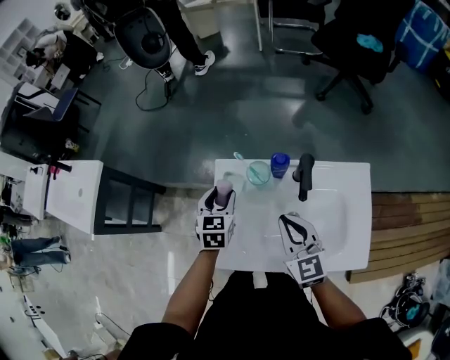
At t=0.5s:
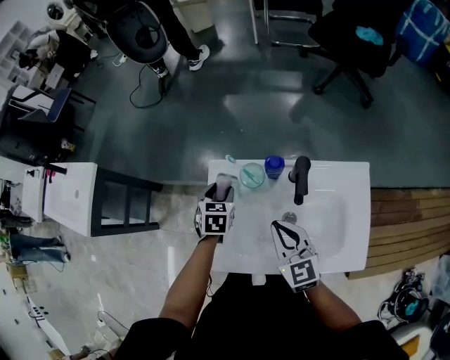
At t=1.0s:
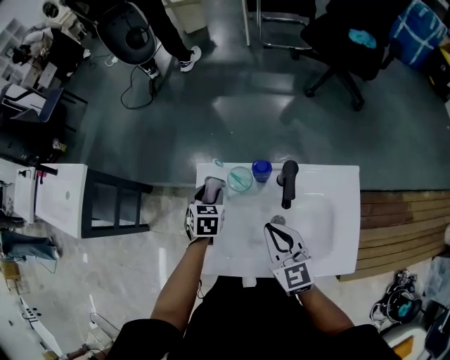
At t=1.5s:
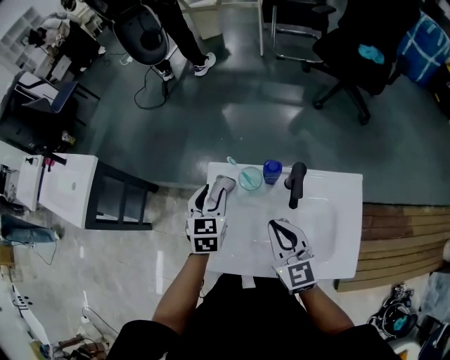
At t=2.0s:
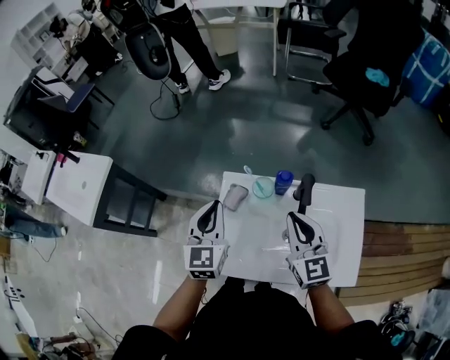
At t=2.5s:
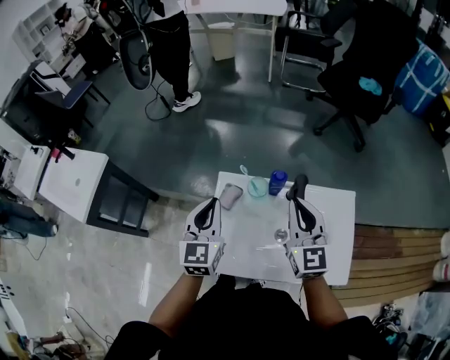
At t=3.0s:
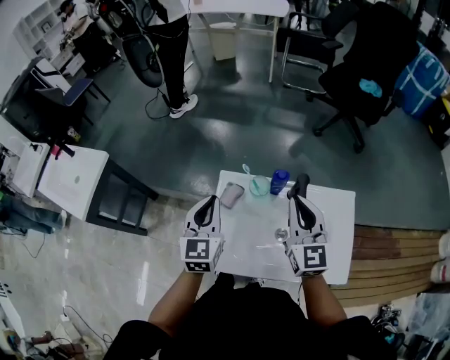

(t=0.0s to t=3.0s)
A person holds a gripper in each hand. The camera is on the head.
t=1.5s - t=3.0s: The right gripper moves upward, about 10 cm, while the left gripper heads upward and backward, covering some 15 cm, and closes its fingers.

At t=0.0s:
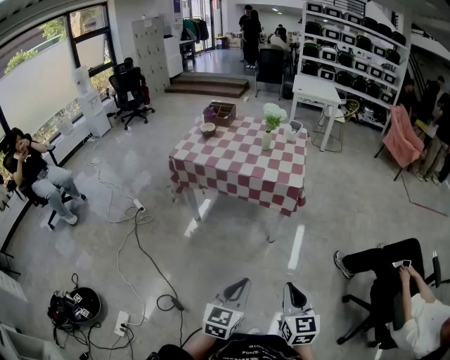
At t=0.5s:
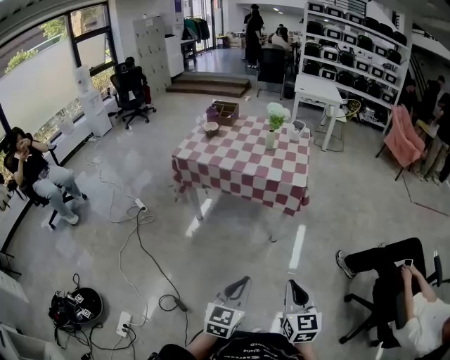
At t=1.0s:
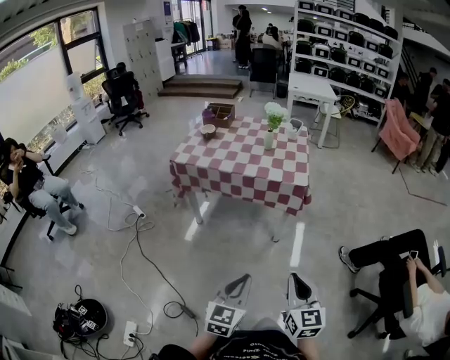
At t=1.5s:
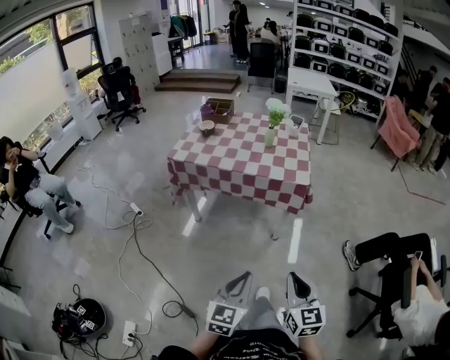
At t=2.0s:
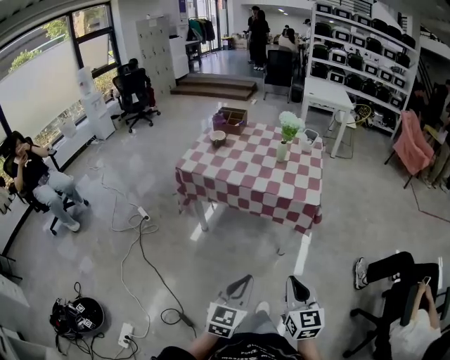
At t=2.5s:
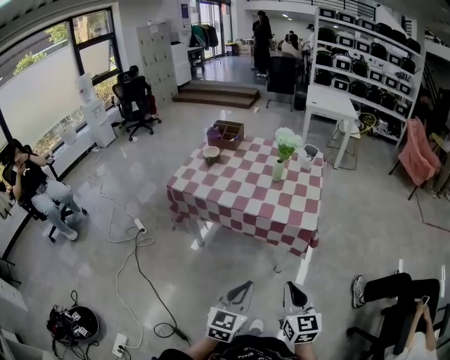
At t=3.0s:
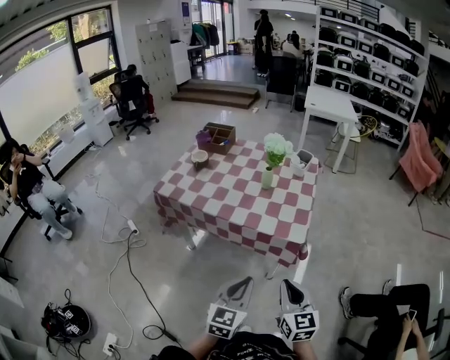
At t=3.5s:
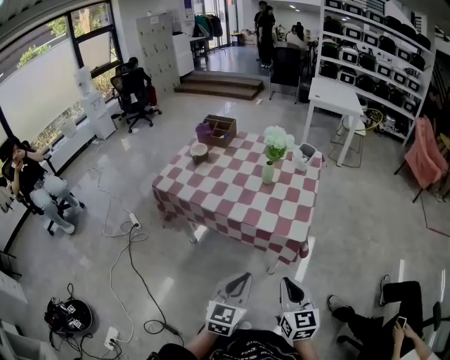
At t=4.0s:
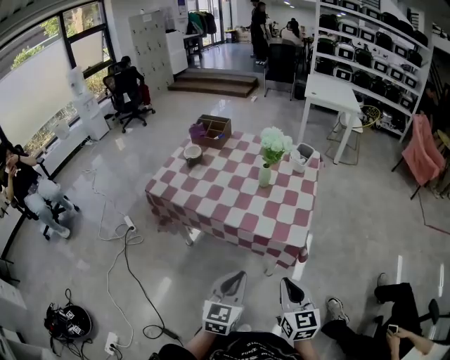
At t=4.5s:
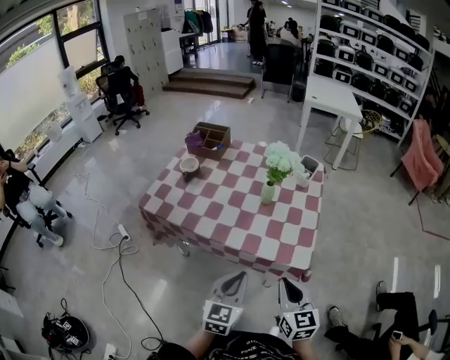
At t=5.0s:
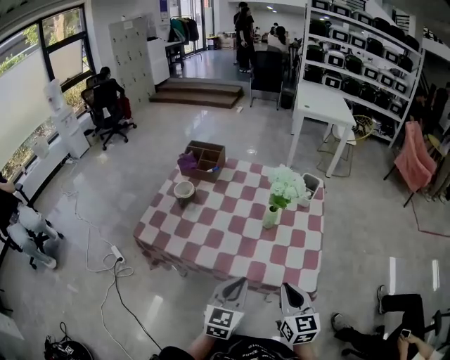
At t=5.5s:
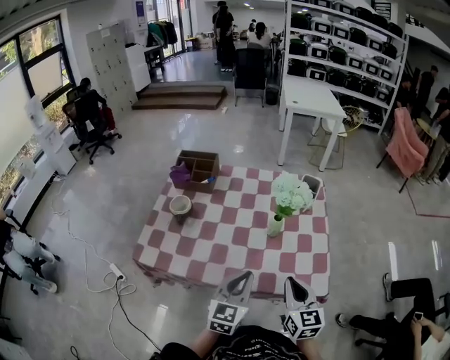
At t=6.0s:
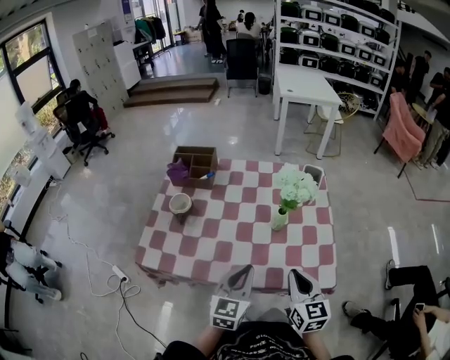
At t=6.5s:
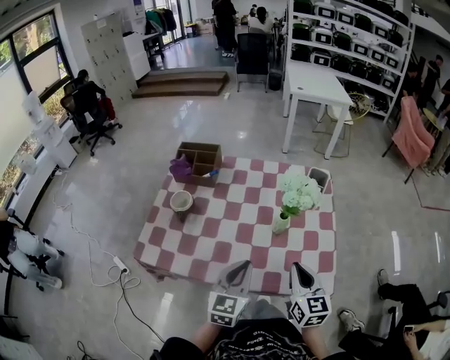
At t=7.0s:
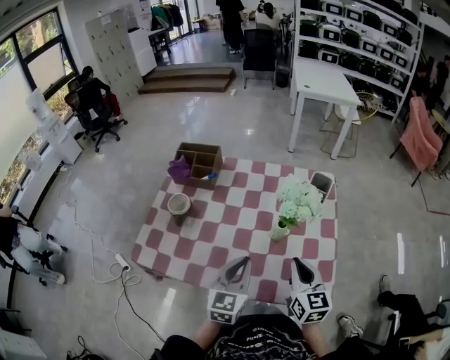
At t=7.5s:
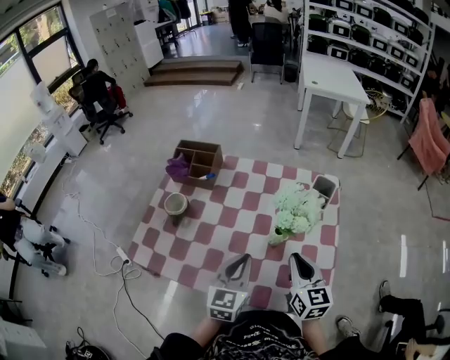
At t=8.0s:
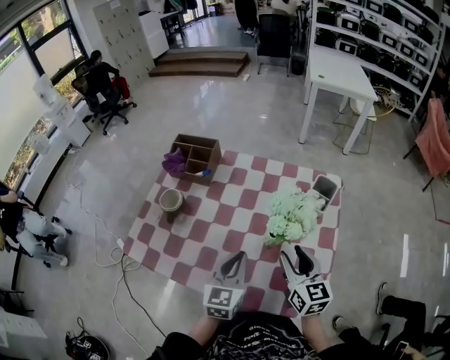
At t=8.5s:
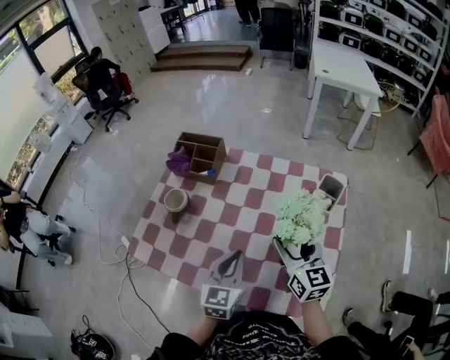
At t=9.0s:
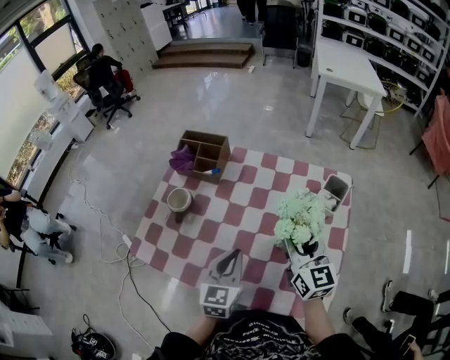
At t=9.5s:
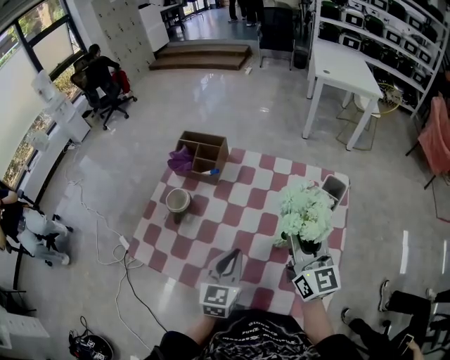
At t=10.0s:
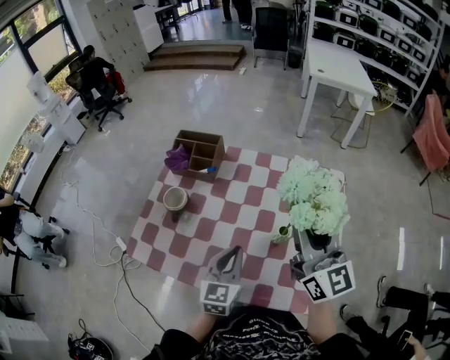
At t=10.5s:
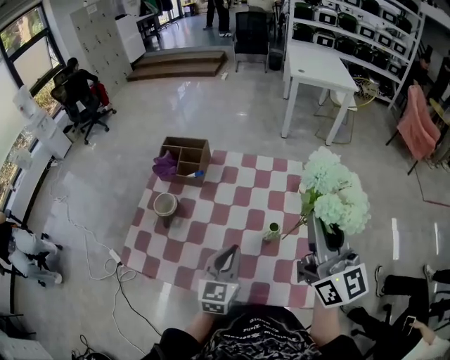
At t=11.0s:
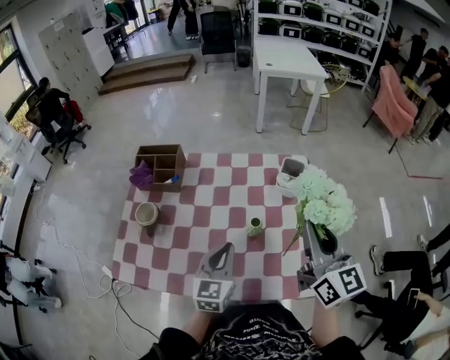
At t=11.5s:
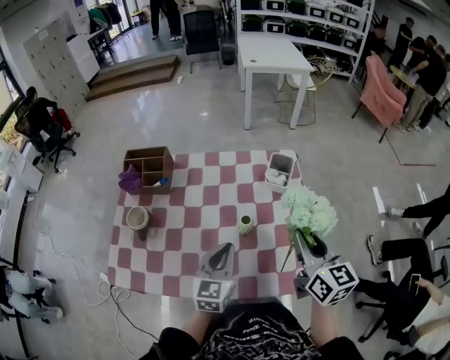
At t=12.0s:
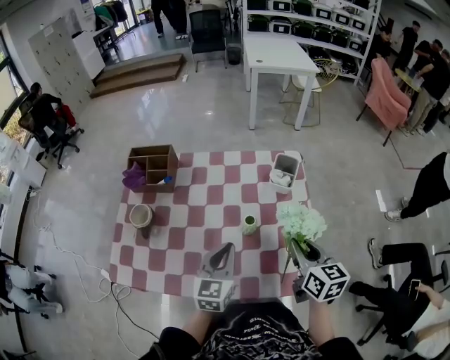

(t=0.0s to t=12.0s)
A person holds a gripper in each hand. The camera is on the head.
t=0.0s - t=2.0s: The grippers both shift forward and to the left by roughly 15 cm.
t=2.0s - t=4.0s: The left gripper travels forward by some 25 cm, while the right gripper travels forward and to the right by approximately 25 cm.
t=4.0s - t=6.0s: The grippers both shift forward and to the left by approximately 25 cm.
t=6.0s - t=8.0s: Both grippers travel together forward, approximately 15 cm. The right gripper opens its fingers.
t=8.0s - t=10.0s: The right gripper goes some 20 cm upward, changes its angle by about 30 degrees, and opens, then closes again.
t=10.0s - t=12.0s: The right gripper heads downward, to the right and backward, covering approximately 20 cm, and tilts its fingers about 30 degrees downward. The left gripper moves to the right, approximately 5 cm.

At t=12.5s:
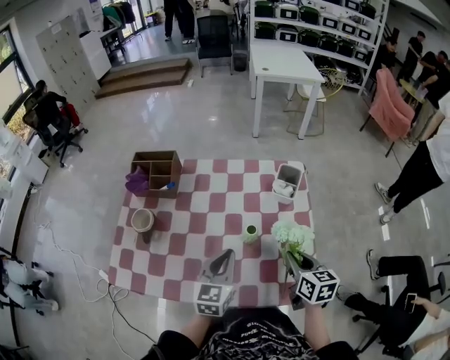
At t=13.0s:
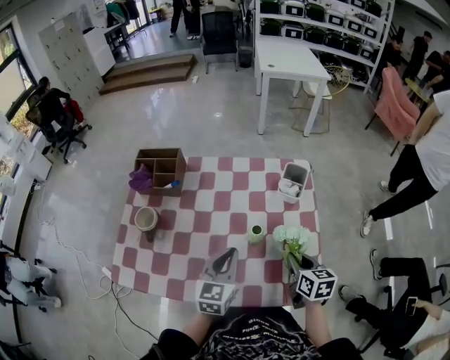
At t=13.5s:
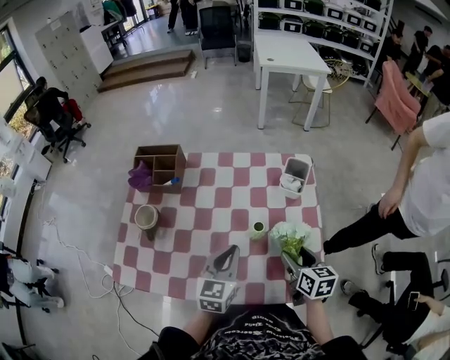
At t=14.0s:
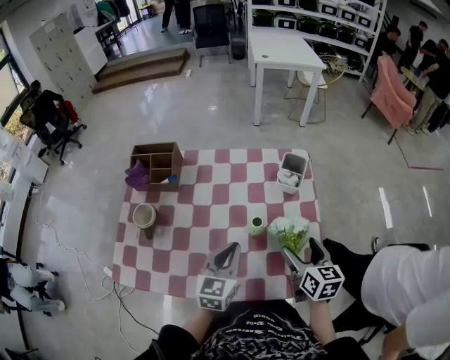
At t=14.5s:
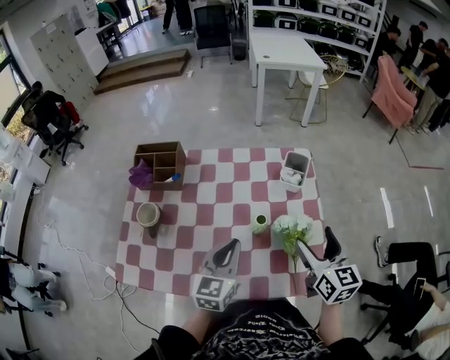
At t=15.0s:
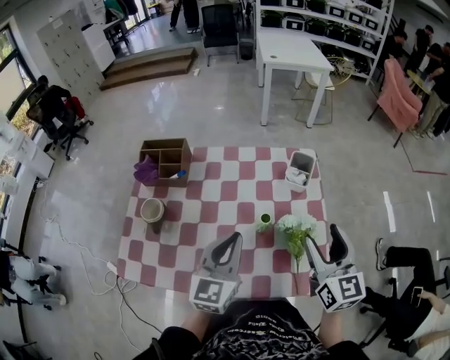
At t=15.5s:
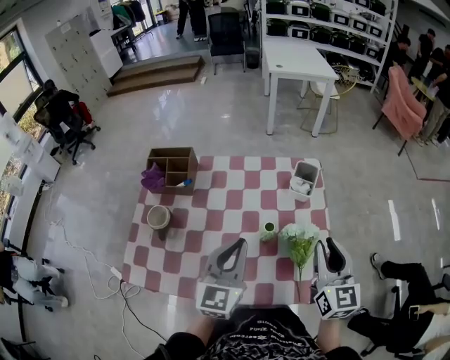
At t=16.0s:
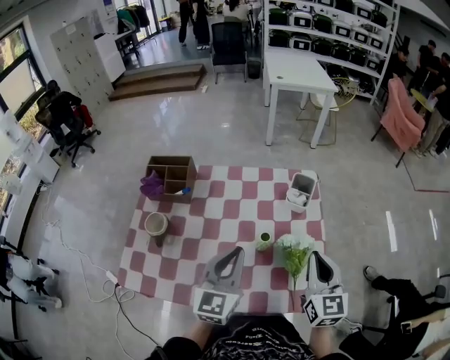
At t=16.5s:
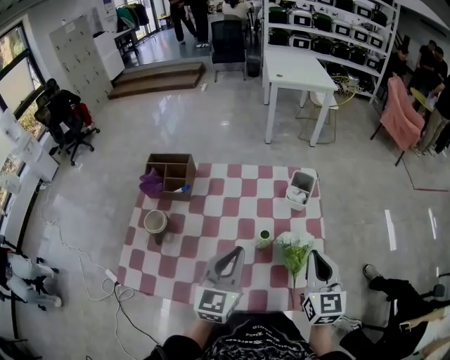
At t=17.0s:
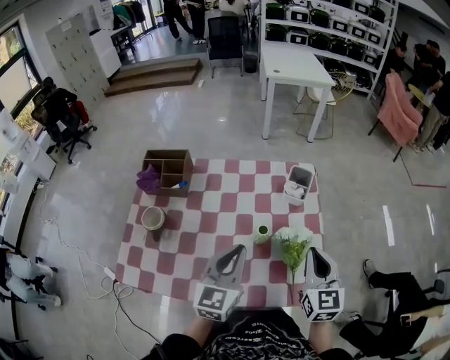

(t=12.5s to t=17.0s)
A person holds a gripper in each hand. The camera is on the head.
t=12.5s - t=14.5s: The right gripper moves upward, about 10 cm, and opens its fingers.
t=14.5s - t=17.0s: The right gripper closes its fingers. The left gripper heads upward, covering about 5 cm.

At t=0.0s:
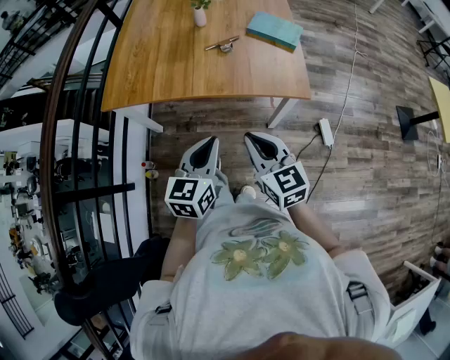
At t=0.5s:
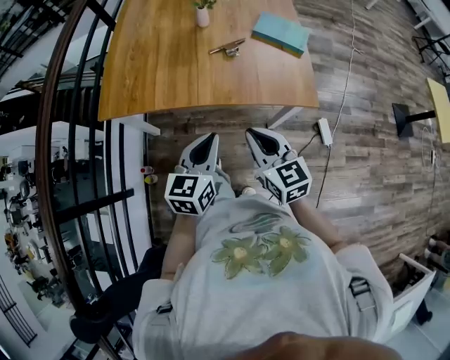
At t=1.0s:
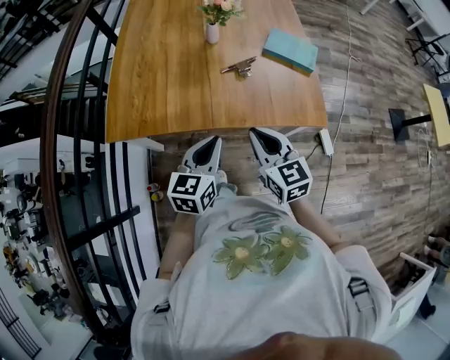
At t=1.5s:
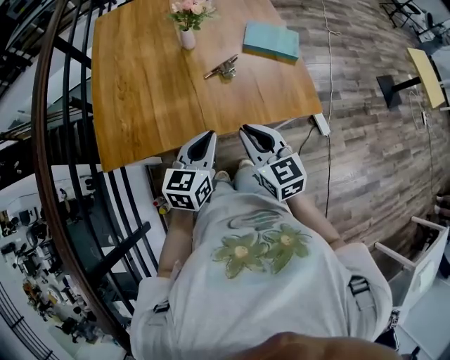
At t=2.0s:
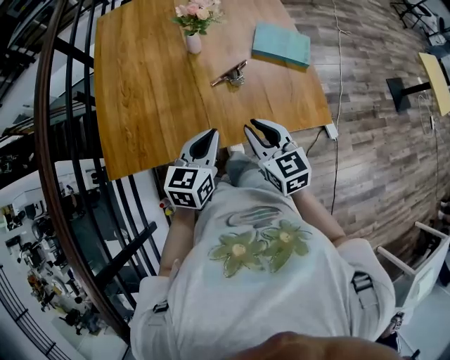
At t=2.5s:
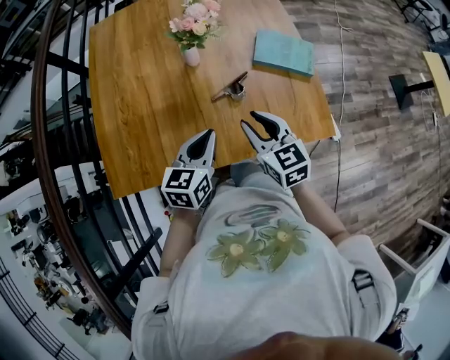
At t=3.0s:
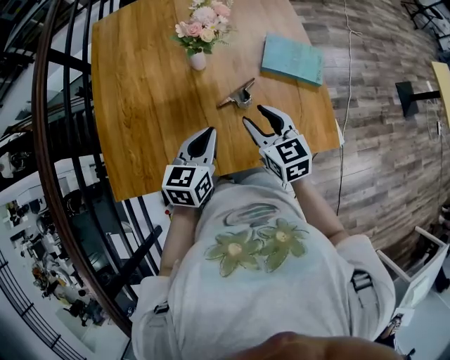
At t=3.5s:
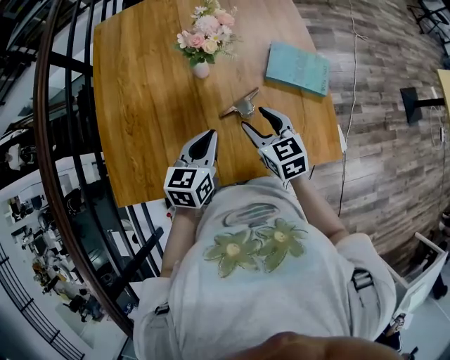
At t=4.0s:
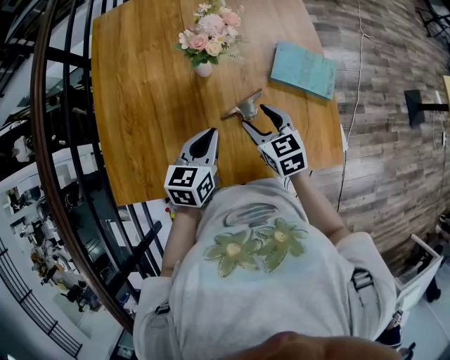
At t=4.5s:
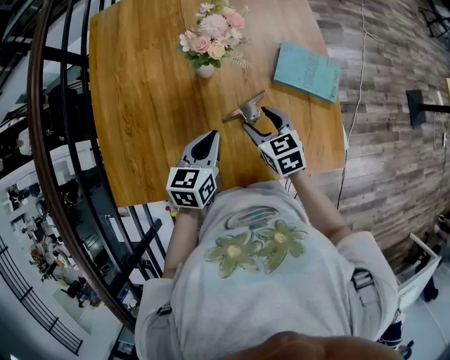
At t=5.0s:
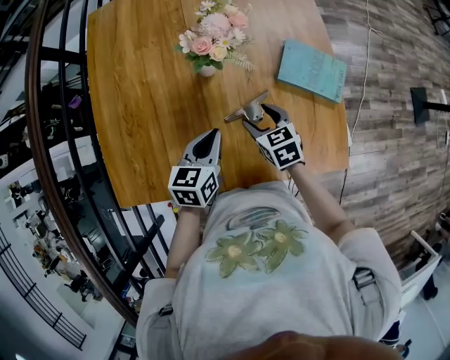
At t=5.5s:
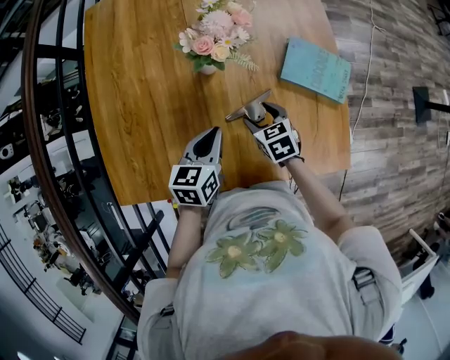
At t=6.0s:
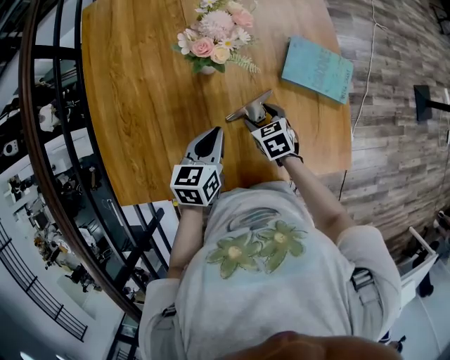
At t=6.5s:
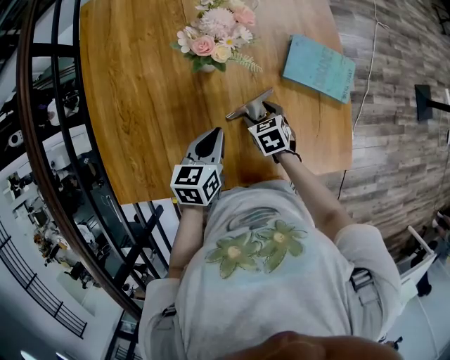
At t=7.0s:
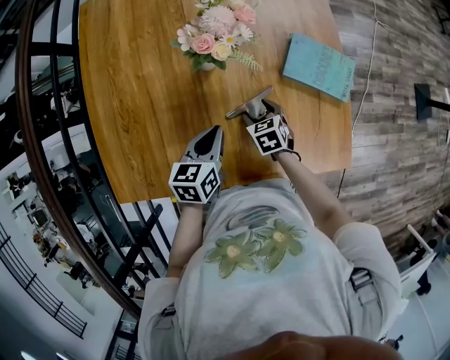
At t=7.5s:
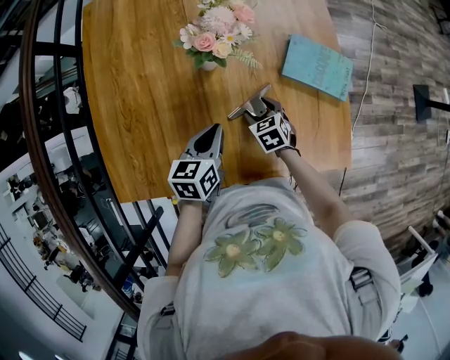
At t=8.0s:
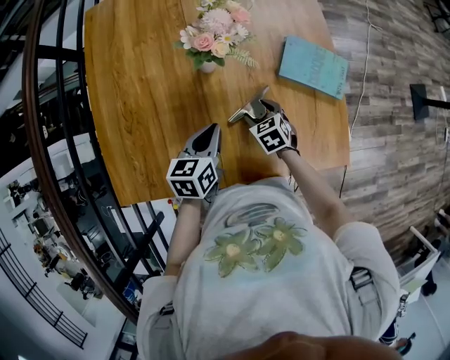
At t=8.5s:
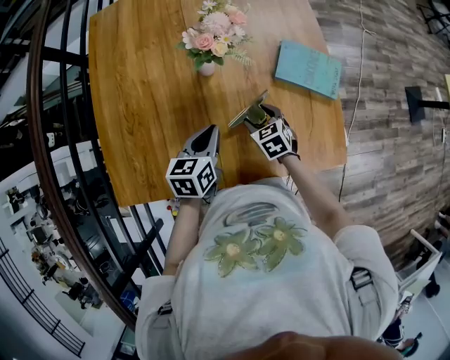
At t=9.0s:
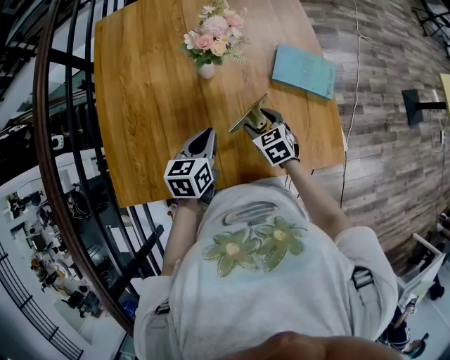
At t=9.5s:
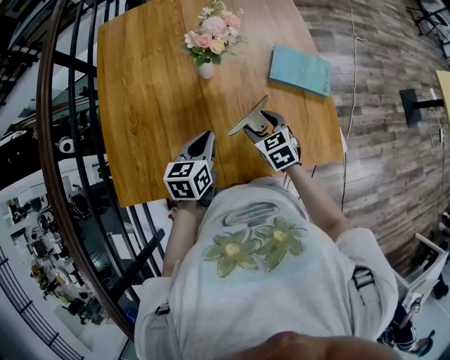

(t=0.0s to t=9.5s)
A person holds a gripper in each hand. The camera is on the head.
t=0.0s - t=2.0s: The grippers both shift forward by approximately 25 cm.
t=2.0s - t=4.0s: The right gripper goes approximately 20 cm forward and downward, and opens. Meanwhile the left gripper is displaced forward by some 15 cm.
t=4.0s - t=5.5s: The right gripper shifts some 10 cm downward, while the left gripper ends up some 5 cm from where it was.
t=5.5s - t=7.5s: The right gripper goes about 5 cm downward.
t=7.5s - t=9.5s: The right gripper shifts some 15 cm upward and backward, while the left gripper changes place by about 5 cm.
